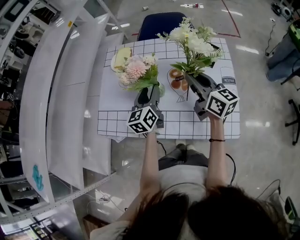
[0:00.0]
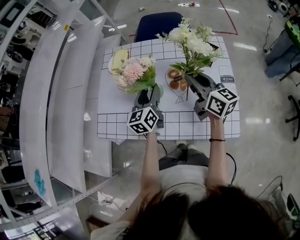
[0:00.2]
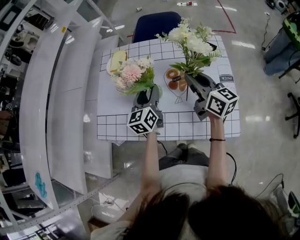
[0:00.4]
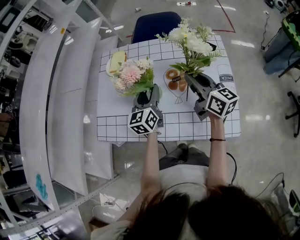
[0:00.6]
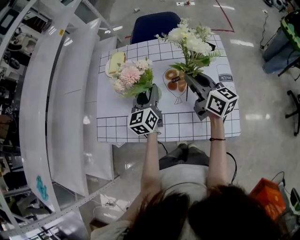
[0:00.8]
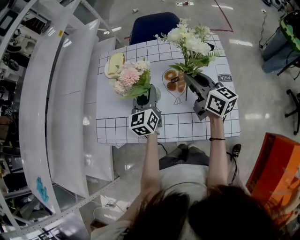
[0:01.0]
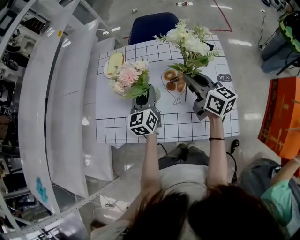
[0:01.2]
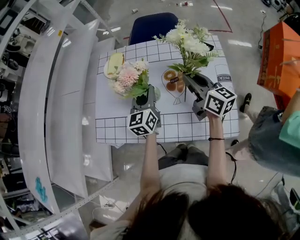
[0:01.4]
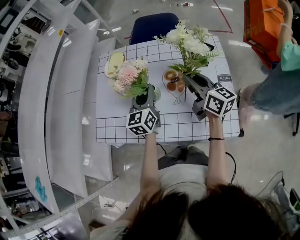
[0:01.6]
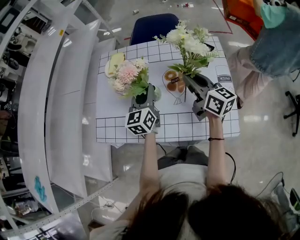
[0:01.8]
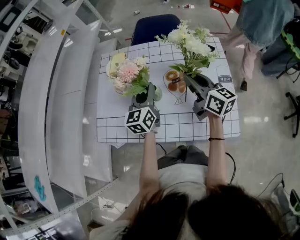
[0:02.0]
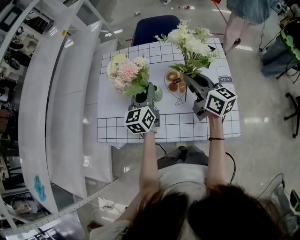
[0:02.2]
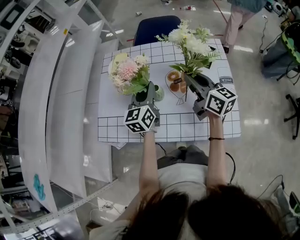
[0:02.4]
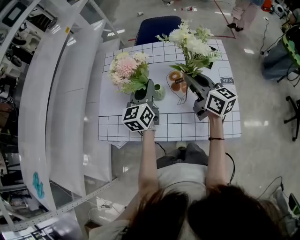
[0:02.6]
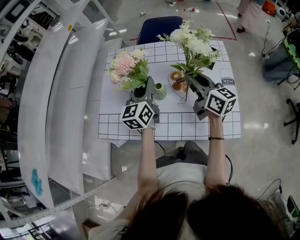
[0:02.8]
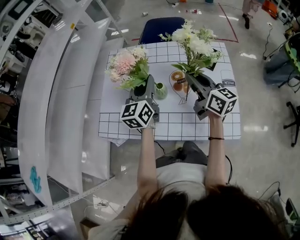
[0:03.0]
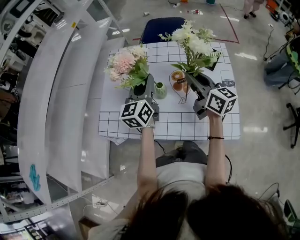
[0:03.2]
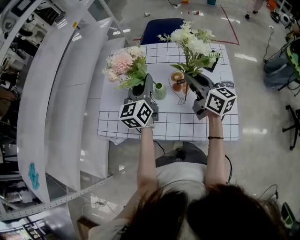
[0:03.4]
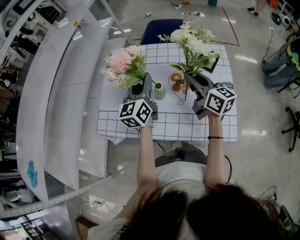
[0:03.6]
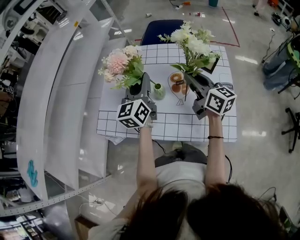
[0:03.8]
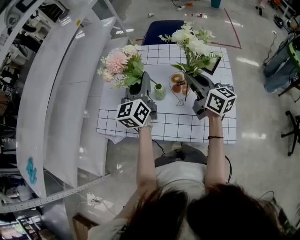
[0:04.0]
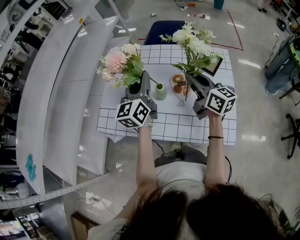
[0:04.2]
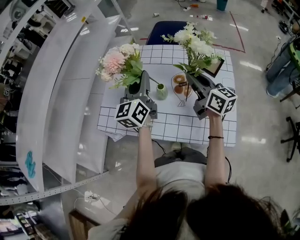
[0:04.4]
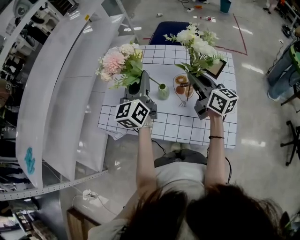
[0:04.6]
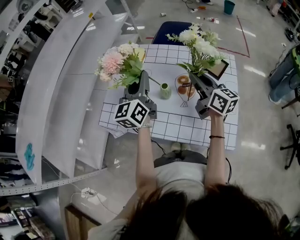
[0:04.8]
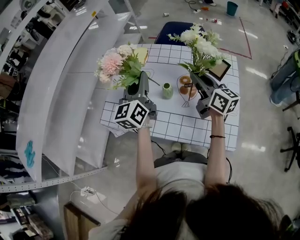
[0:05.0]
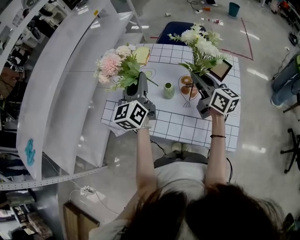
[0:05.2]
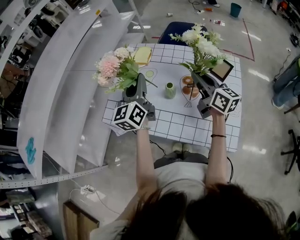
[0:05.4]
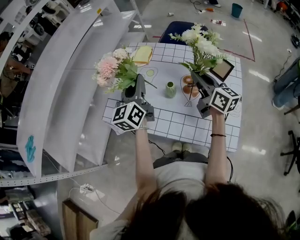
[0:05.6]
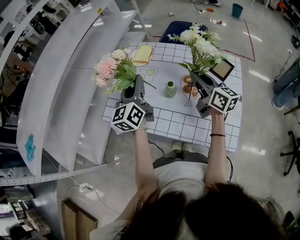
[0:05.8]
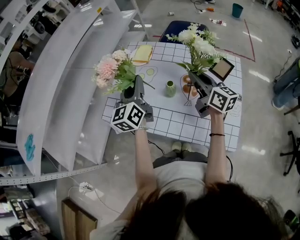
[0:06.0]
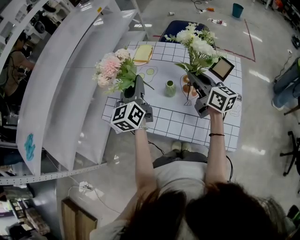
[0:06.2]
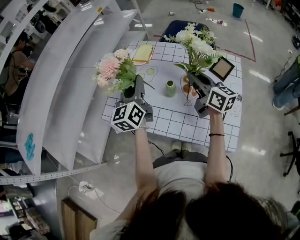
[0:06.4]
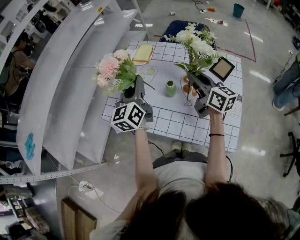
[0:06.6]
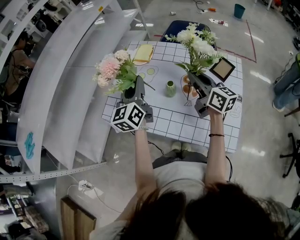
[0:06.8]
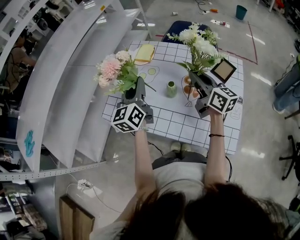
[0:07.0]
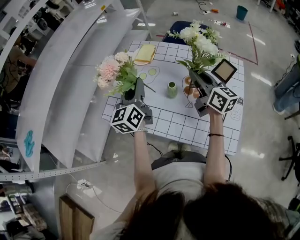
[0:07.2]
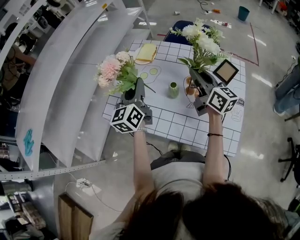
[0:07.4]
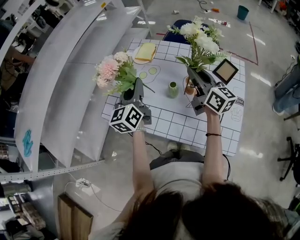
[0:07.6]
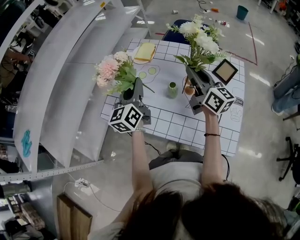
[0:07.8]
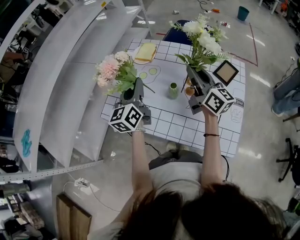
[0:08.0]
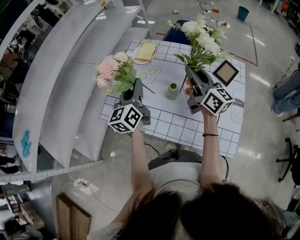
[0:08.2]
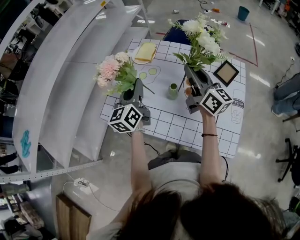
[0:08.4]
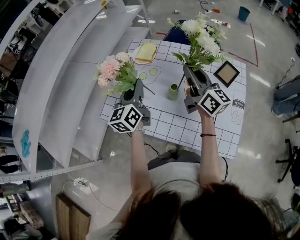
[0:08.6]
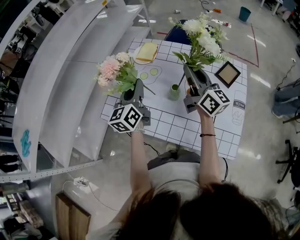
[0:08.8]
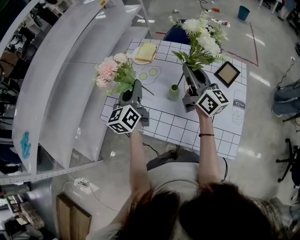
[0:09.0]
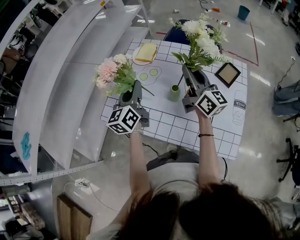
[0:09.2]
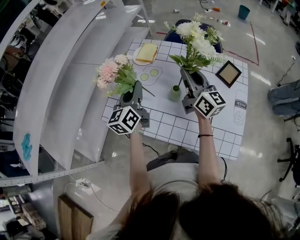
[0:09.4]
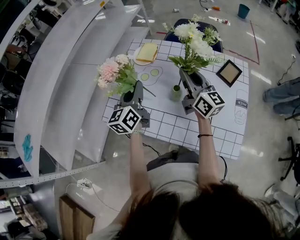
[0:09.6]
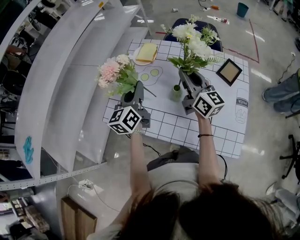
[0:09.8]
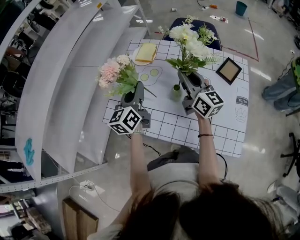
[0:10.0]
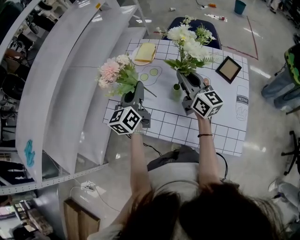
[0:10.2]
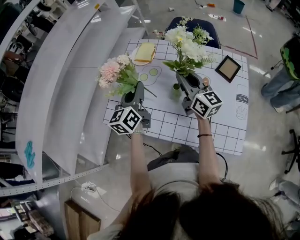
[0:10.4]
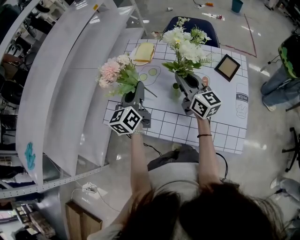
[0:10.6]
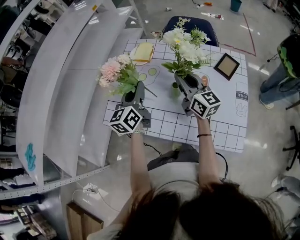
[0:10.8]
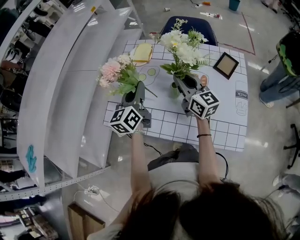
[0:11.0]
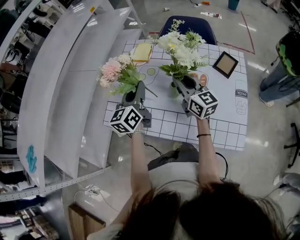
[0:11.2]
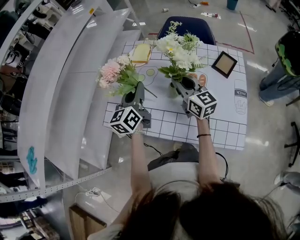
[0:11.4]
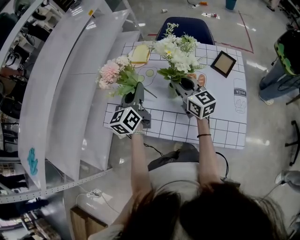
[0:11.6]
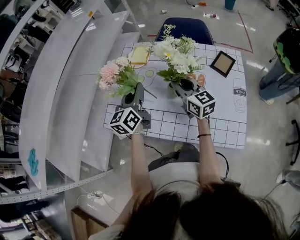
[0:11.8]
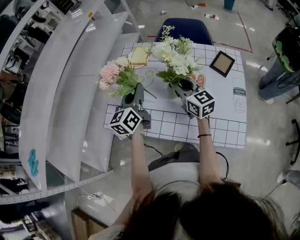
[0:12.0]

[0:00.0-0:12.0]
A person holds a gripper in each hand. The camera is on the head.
0:00.0 to 0:01.6: The left gripper closes up.
0:01.6 to 0:03.0: The left gripper shifts approximately 5 cm upward.
0:03.0 to 0:04.4: The left gripper changes place by some 5 cm.
0:04.4 to 0:06.0: The left gripper travels to the left by approximately 10 cm.
0:06.0 to 0:07.6: There are only small adjustments of the grippers.
0:07.6 to 0:09.0: The grippers stay close to where they were, moving slightly.
0:09.0 to 0:10.4: The right gripper heads downward, covering about 5 cm.
0:10.4 to 0:12.0: The grippers move only a little.

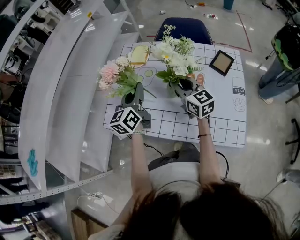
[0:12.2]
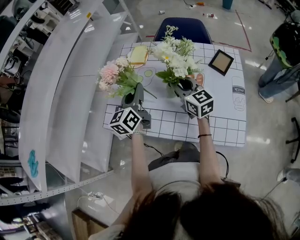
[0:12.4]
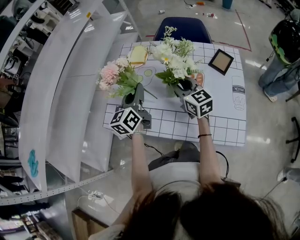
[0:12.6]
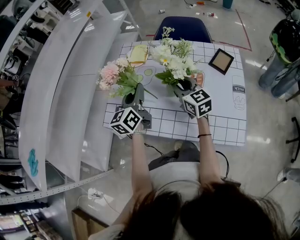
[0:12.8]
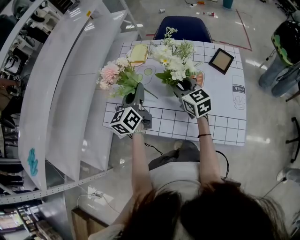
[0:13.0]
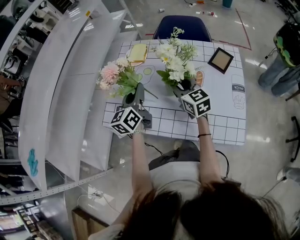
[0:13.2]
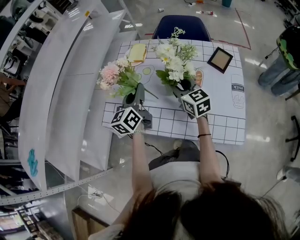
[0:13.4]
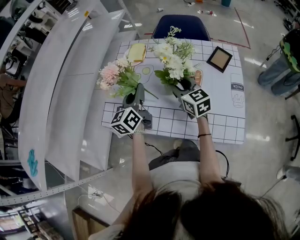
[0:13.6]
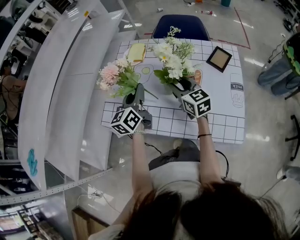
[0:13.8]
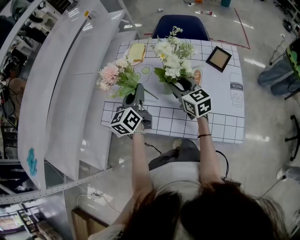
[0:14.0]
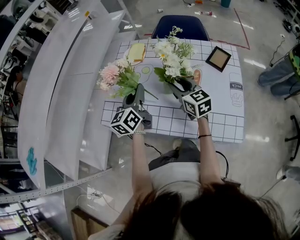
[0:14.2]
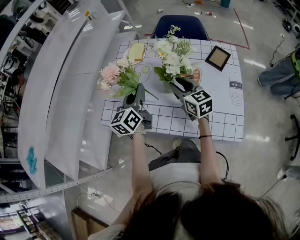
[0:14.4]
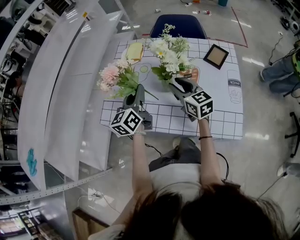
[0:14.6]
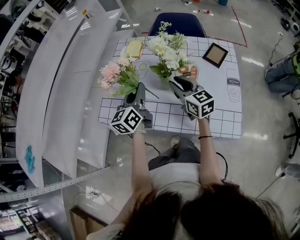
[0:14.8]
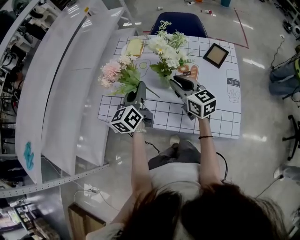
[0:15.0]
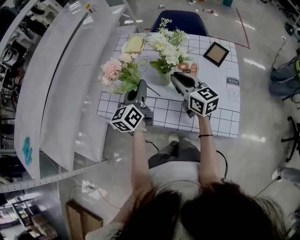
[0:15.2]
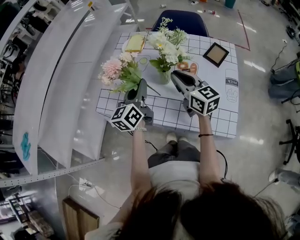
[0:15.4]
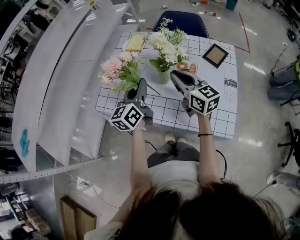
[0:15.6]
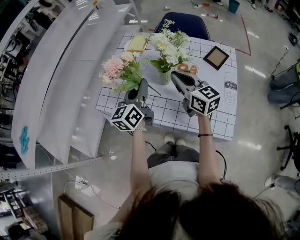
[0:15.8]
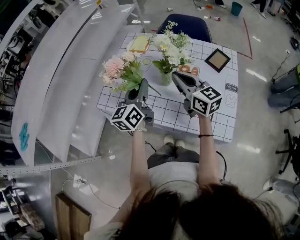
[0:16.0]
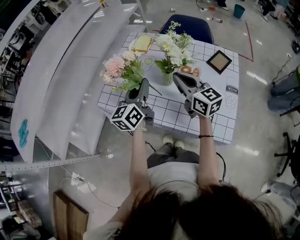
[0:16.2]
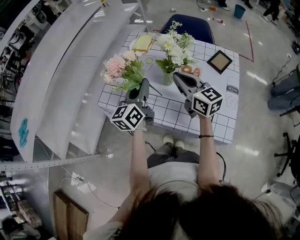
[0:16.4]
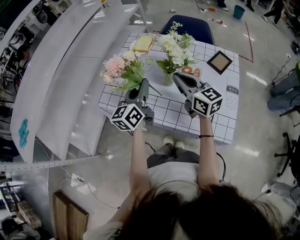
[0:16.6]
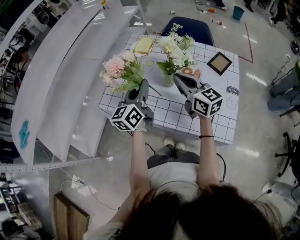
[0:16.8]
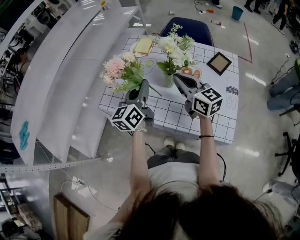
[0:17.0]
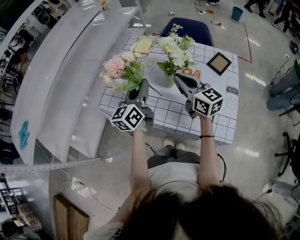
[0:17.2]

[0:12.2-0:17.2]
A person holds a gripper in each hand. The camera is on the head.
0:12.2 to 0:13.8: The grippers make only small movements.
0:13.8 to 0:15.6: The right gripper shifts approximately 10 cm upward and backward. The left gripper moves backward, about 5 cm.
0:15.6 to 0:17.2: The grippers make only small movements.

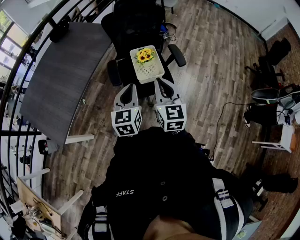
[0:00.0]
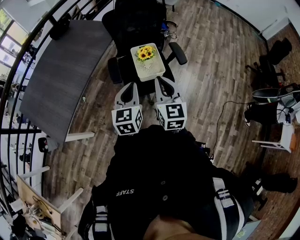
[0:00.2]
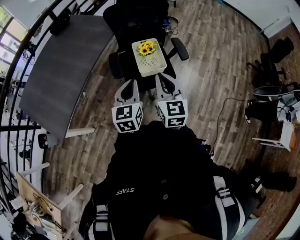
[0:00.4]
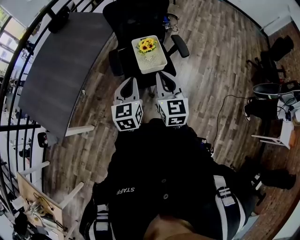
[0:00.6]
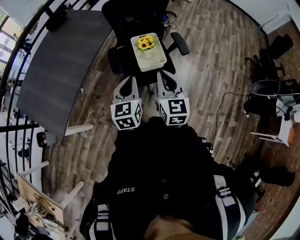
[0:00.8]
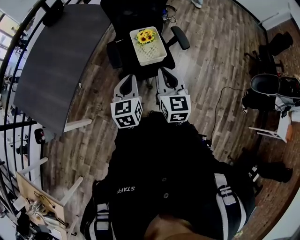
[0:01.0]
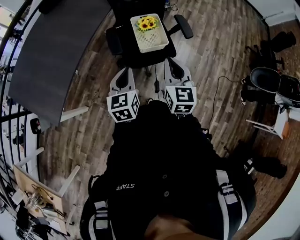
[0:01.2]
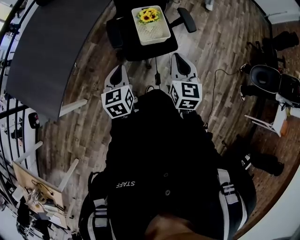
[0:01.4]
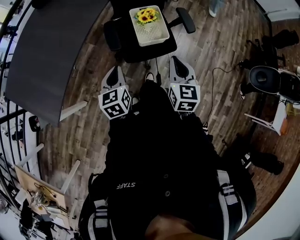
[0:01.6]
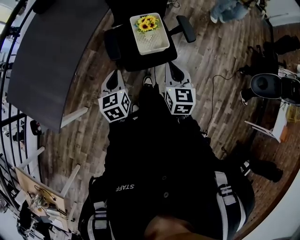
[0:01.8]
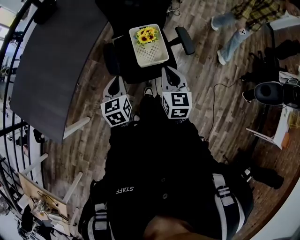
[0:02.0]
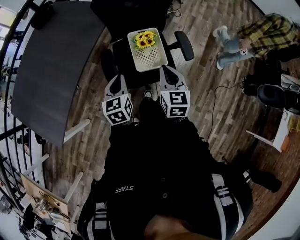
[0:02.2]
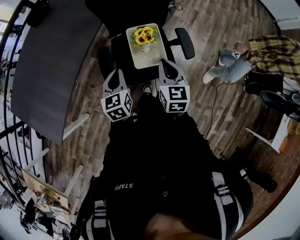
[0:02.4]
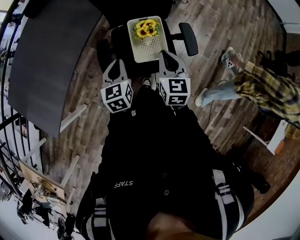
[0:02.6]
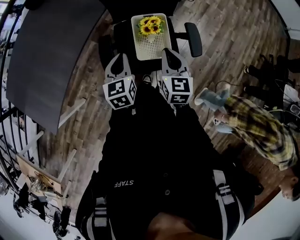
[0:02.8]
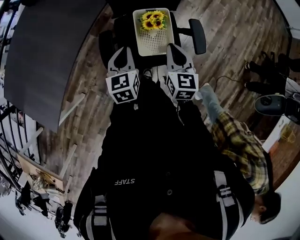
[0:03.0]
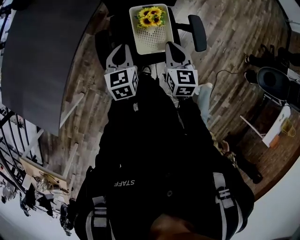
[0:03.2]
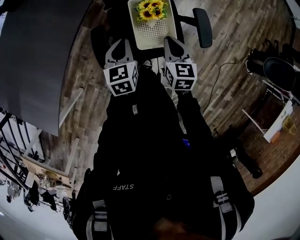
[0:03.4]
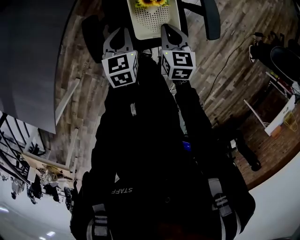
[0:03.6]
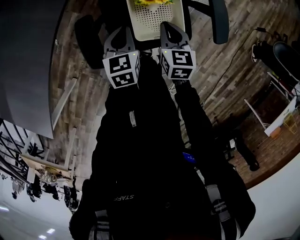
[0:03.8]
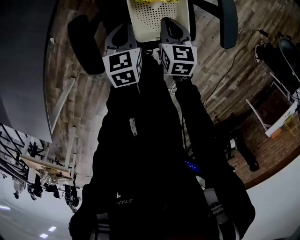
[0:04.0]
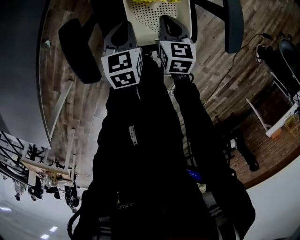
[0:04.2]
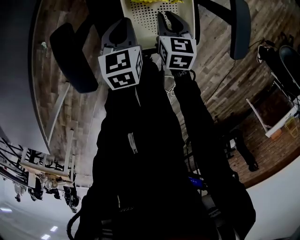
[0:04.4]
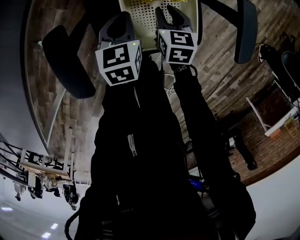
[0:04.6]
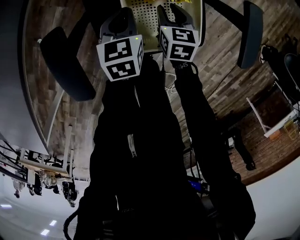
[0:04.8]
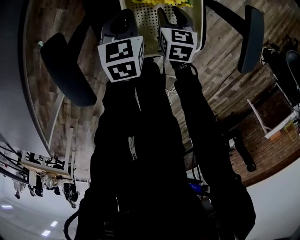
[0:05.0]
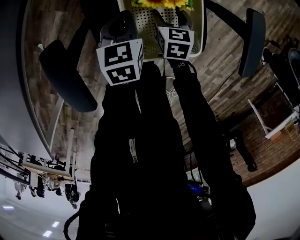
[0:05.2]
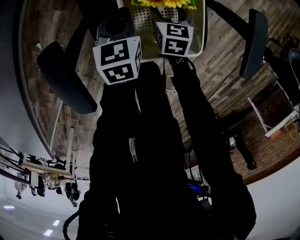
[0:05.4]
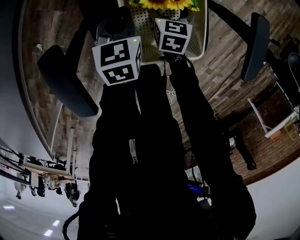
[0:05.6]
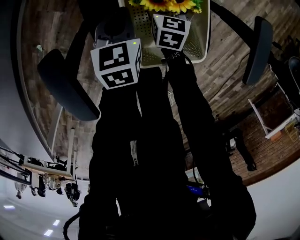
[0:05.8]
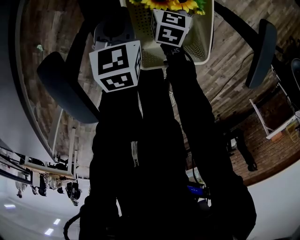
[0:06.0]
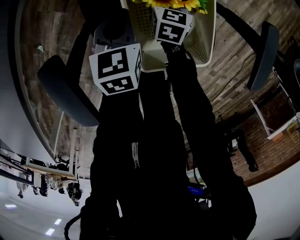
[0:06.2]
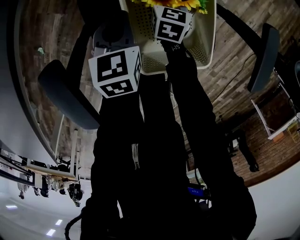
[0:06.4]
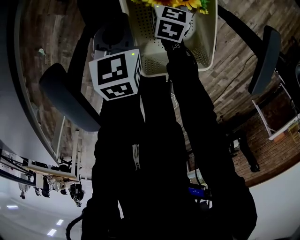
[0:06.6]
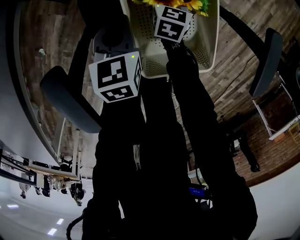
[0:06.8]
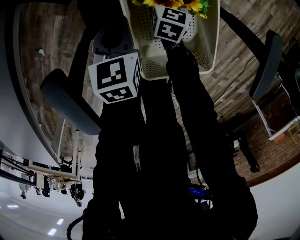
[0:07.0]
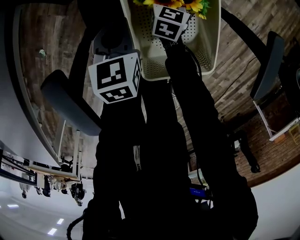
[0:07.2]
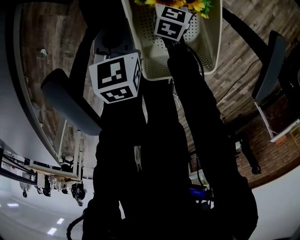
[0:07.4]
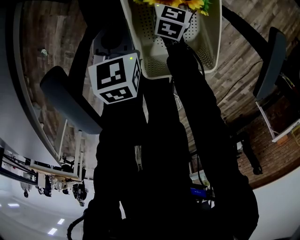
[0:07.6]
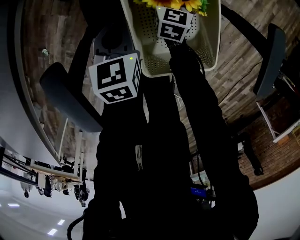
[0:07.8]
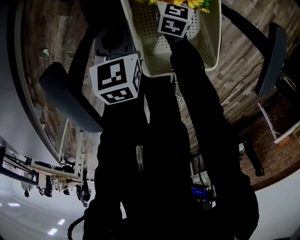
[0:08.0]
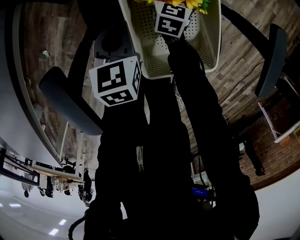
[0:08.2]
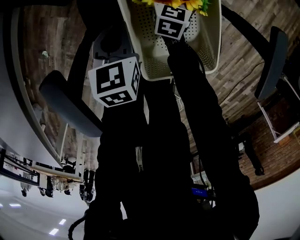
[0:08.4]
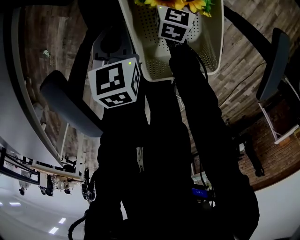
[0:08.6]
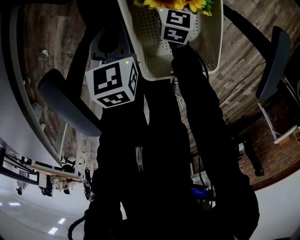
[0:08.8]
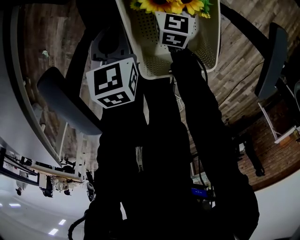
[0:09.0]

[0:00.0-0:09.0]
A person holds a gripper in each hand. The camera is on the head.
0:00.0 to 0:01.6: The right gripper heads downward, covering roughly 10 cm, while the left gripper is displaced downward and to the left by some 15 cm.
0:01.6 to 0:03.0: Both grippers move forward, about 25 cm.
0:03.0 to 0:04.4: Both grippers travel together downward, roughly 35 cm.
0:04.4 to 0:06.0: The left gripper shifts approximately 10 cm forward and downward. The right gripper shifts some 15 cm downward and forward, and opens up.
0:06.0 to 0:07.6: The right gripper shifts by some 5 cm.
0:07.6 to 0:09.0: The grippers move only a little.
